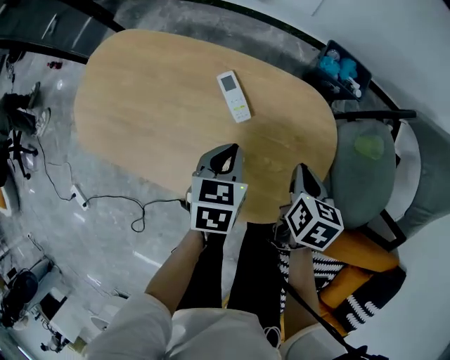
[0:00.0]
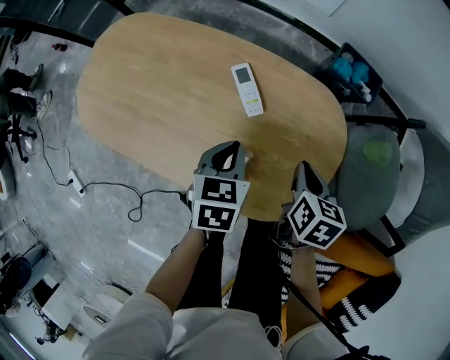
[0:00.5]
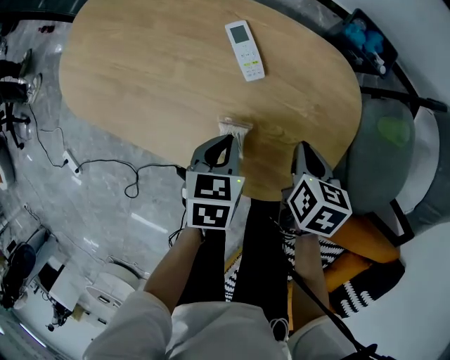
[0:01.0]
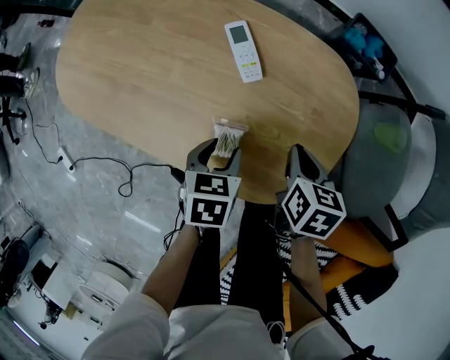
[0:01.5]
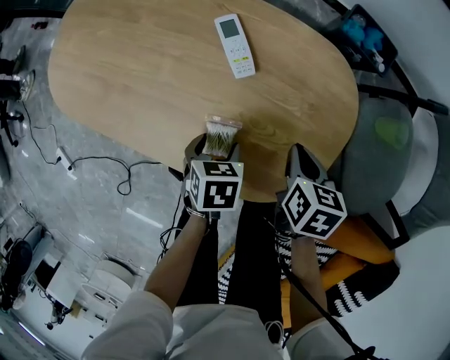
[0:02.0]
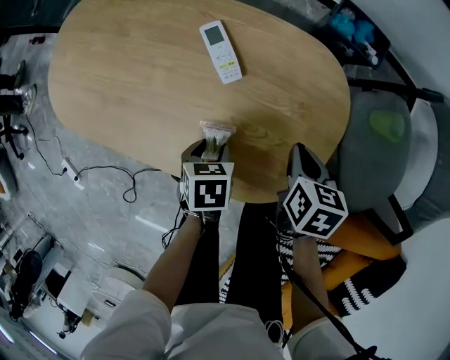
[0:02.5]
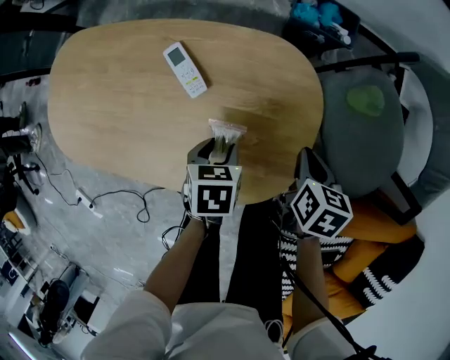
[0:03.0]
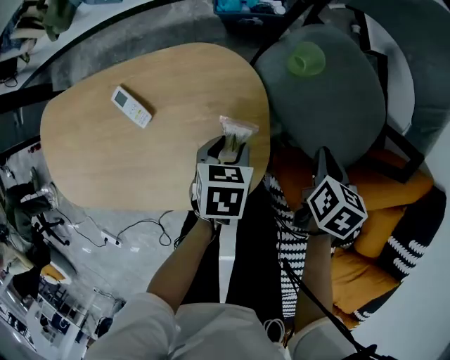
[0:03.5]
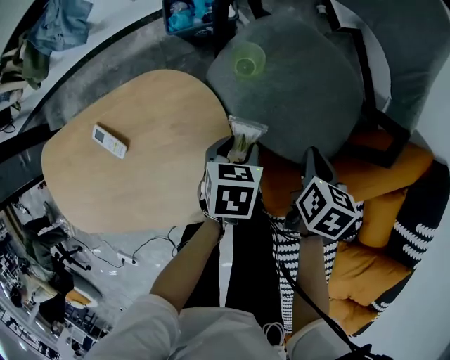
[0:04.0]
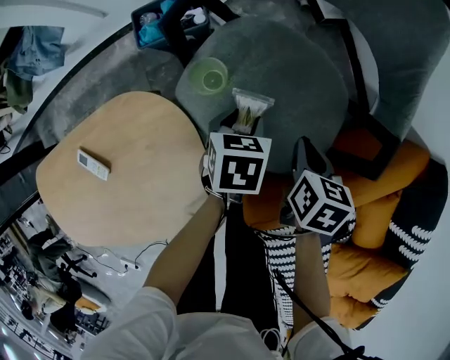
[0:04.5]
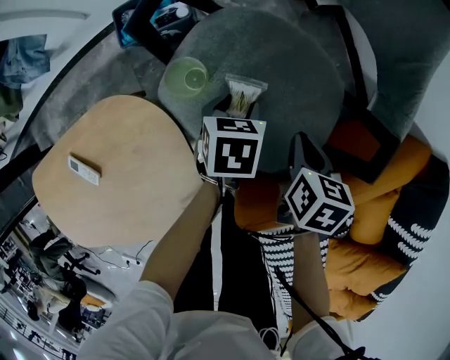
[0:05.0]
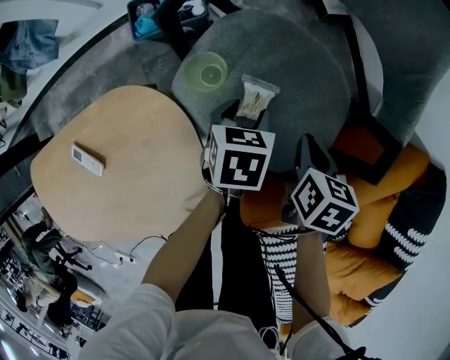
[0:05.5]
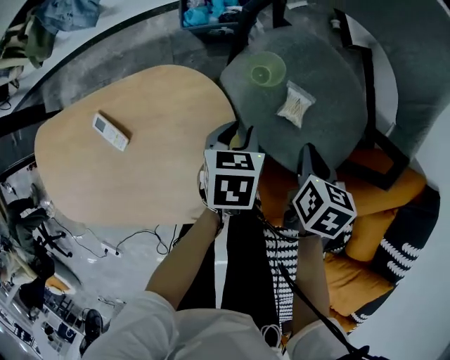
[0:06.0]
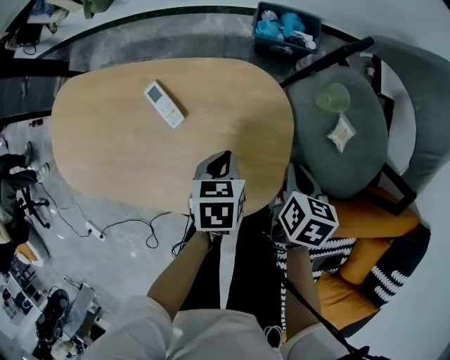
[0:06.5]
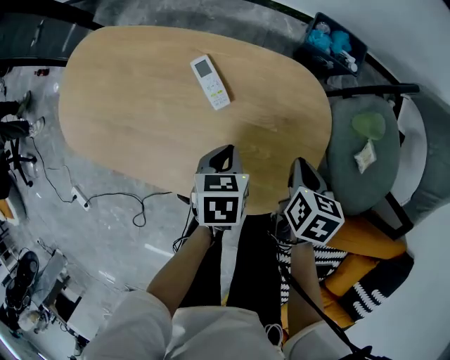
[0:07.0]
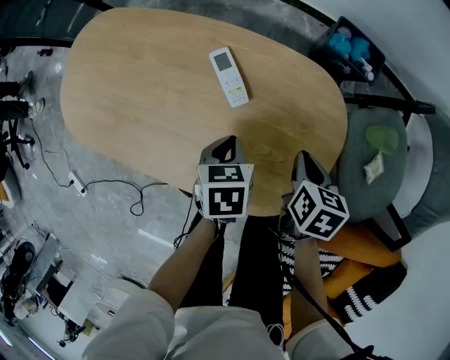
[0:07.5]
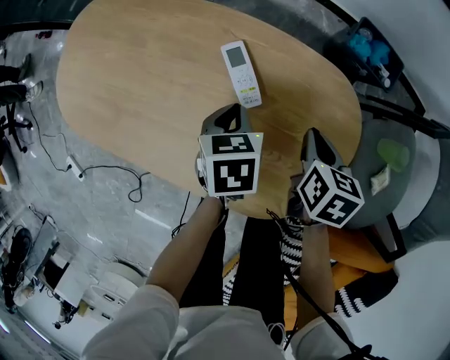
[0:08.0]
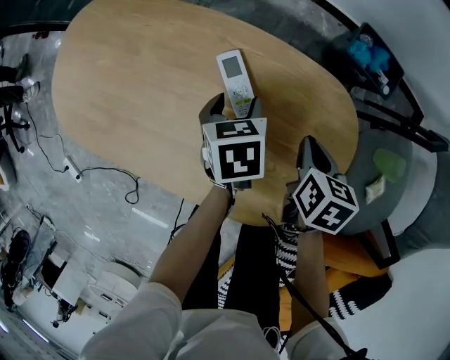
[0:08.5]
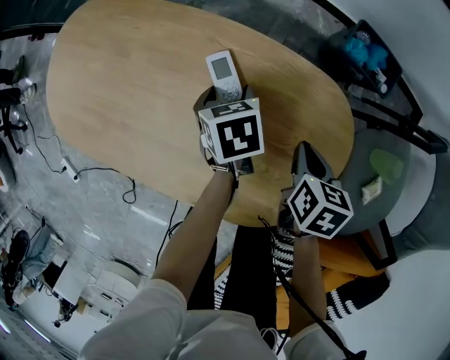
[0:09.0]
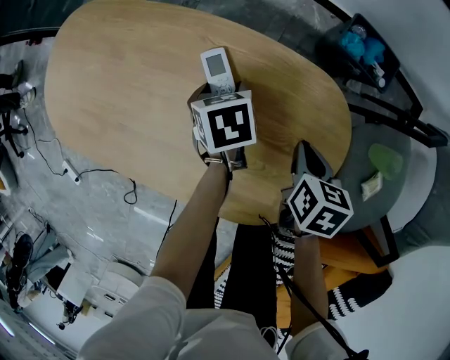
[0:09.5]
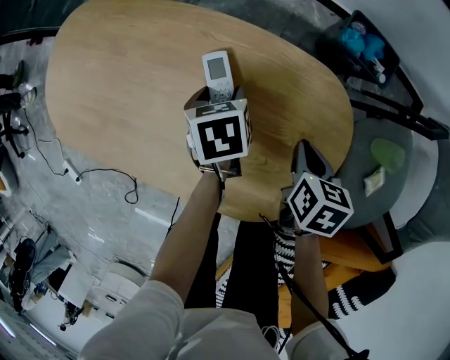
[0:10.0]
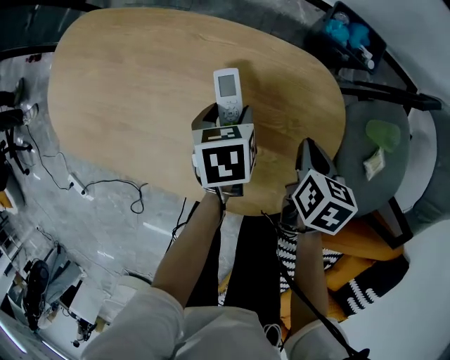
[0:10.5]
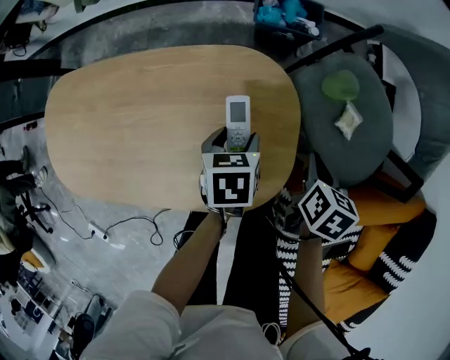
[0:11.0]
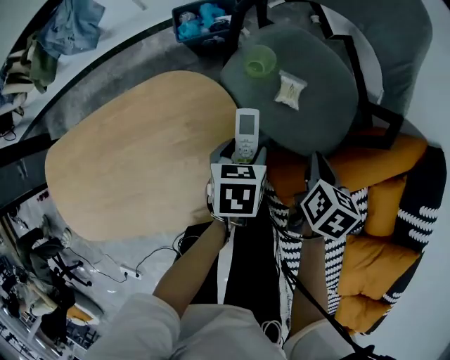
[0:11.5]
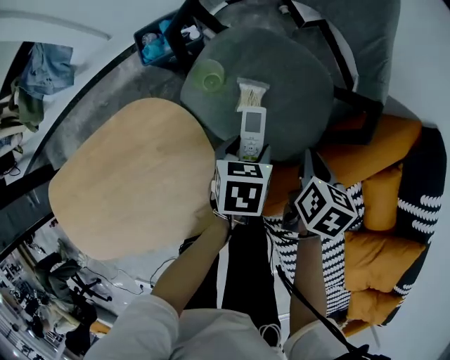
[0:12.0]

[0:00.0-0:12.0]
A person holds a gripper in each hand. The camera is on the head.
0:00.0 to 0:02.0: The left gripper moves downward, about 15 cm, changes its angle by approximately 30 degrees, and opens. The right gripper travels downward by some 10 cm.
0:02.0 to 0:04.0: The left gripper changes place by roughly 40 cm, and changes its angle by about 40 degrees. The right gripper moves about 35 cm, and rotates some 50 degrees.
0:06.0 to 0:08.0: The left gripper changes place by approximately 40 cm, and turns by about 40 degrees. The right gripper changes place by some 40 cm, and changes its angle by roughly 40 degrees.
0:08.0 to 0:10.0: The left gripper ends up roughly 5 cm from where it was, and opens.
0:10.0 to 0:12.0: Both grippers are carried roughly 50 cm. The right gripper changes its angle by some 60 degrees, while the left gripper rotates around the line of its fingers by about 50 degrees, clockwise from behind.

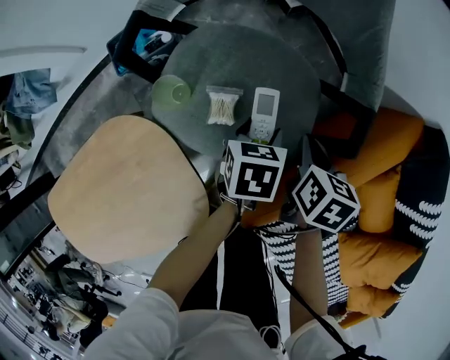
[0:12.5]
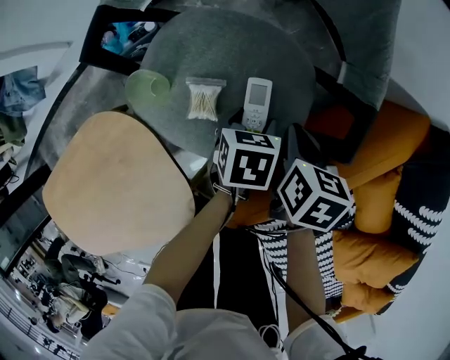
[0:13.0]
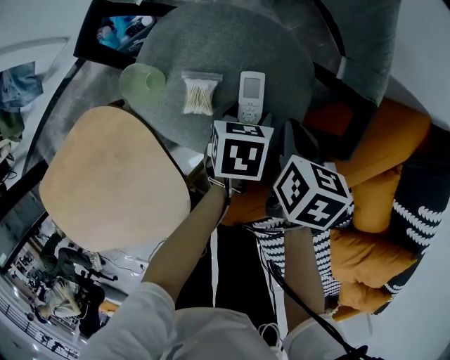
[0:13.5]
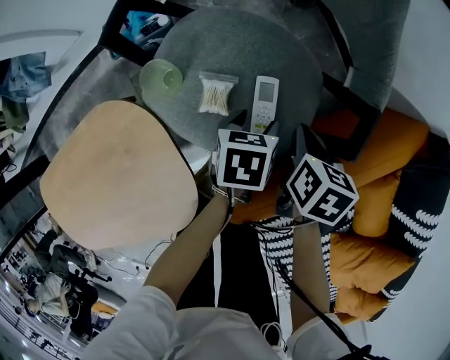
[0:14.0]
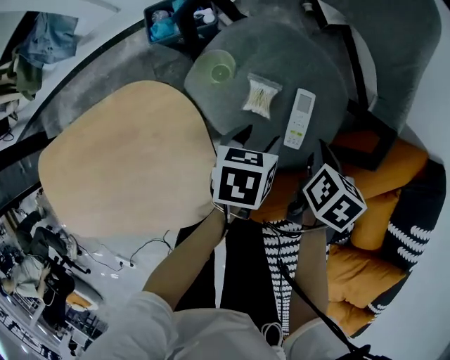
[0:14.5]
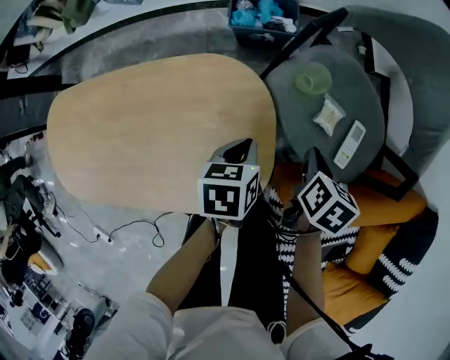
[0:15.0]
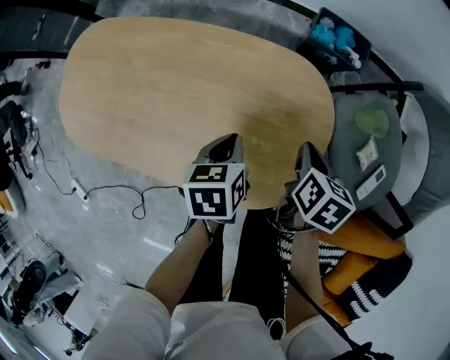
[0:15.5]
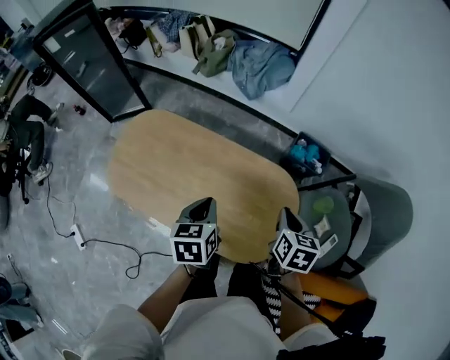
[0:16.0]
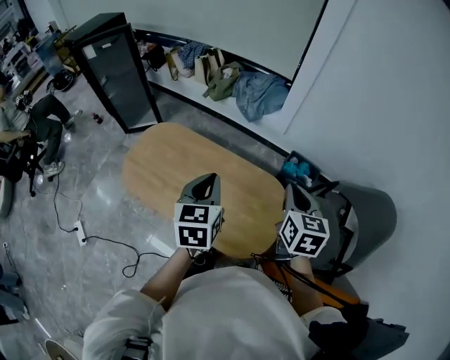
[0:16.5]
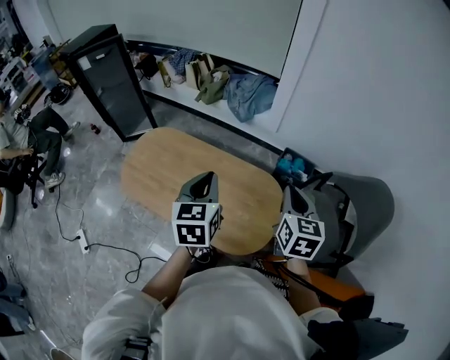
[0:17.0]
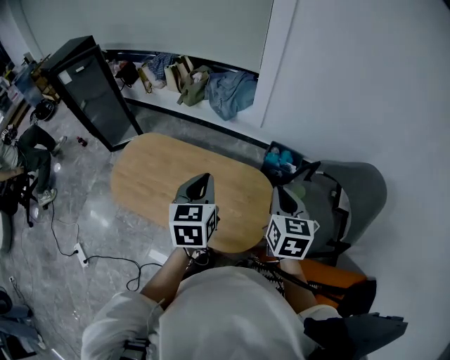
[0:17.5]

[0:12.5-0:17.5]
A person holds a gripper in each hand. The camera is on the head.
0:12.5 to 0:15.0: The left gripper moves roughly 30 cm, swivels roughly 40 degrees, and closes, while the right gripper moves approximately 25 cm, and turns by approximately 20 degrees.
0:15.0 to 0:17.5: Both grippers travel together upward, about 40 cm. The right gripper tilts its fingers approximately 30 degrees upward. Meanwhile the left gripper tilts its fingers about 30 degrees upward.

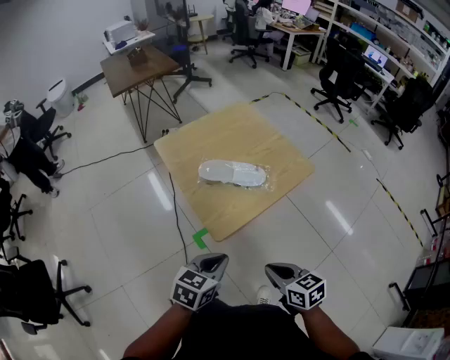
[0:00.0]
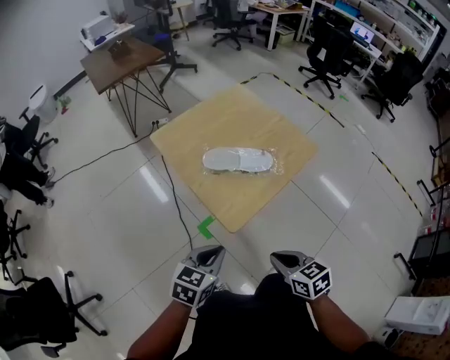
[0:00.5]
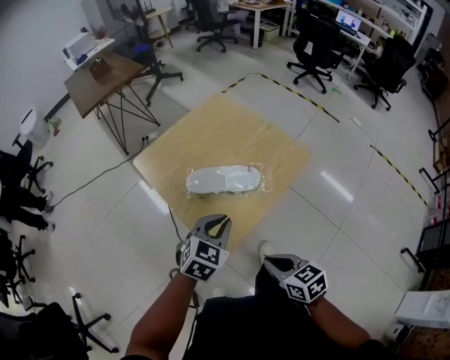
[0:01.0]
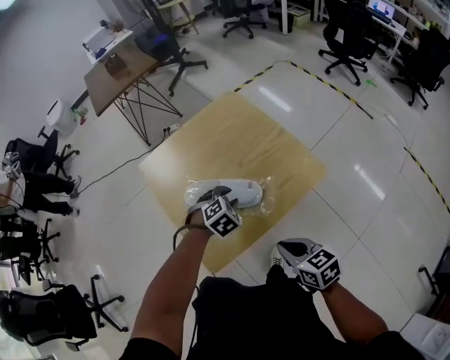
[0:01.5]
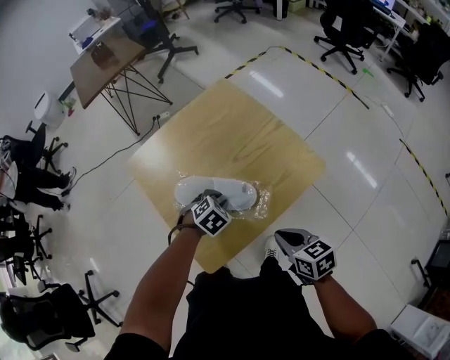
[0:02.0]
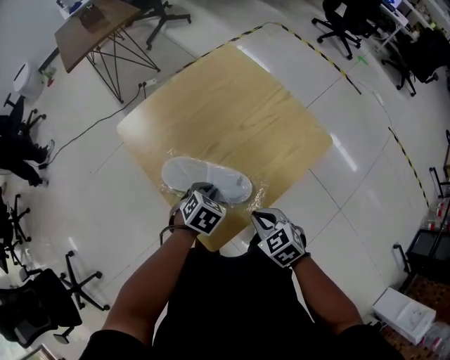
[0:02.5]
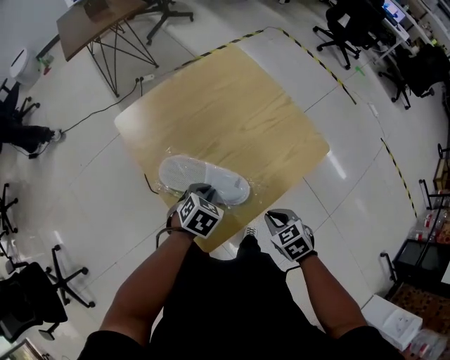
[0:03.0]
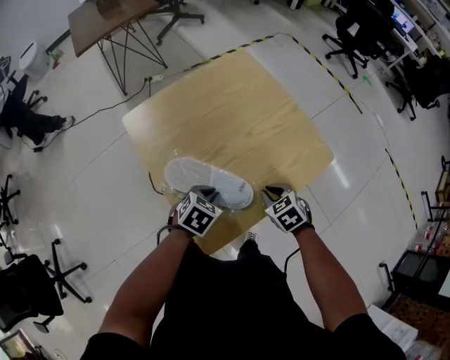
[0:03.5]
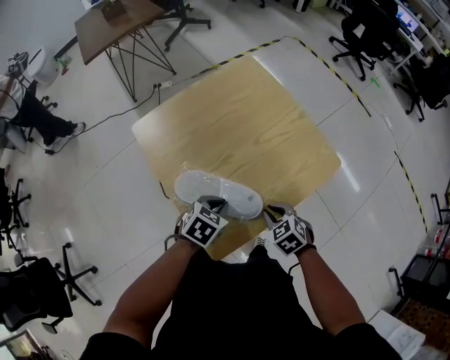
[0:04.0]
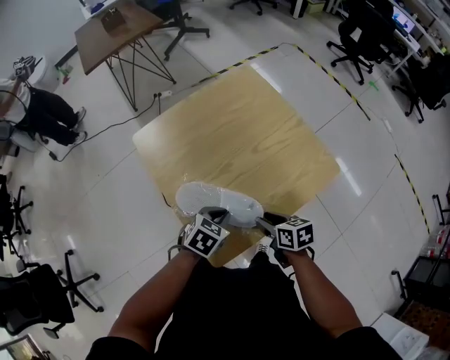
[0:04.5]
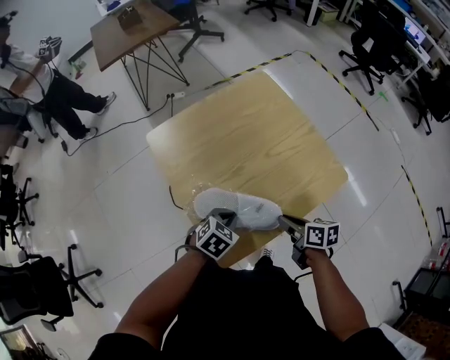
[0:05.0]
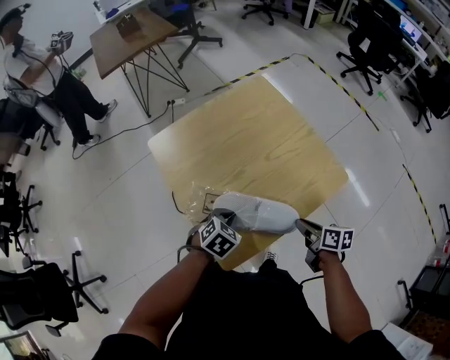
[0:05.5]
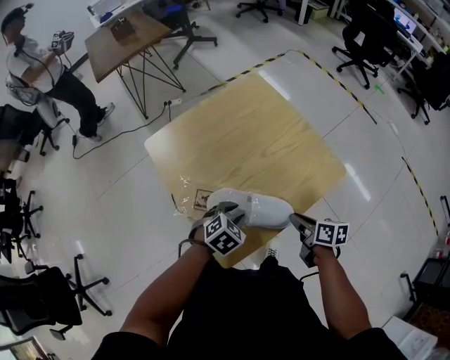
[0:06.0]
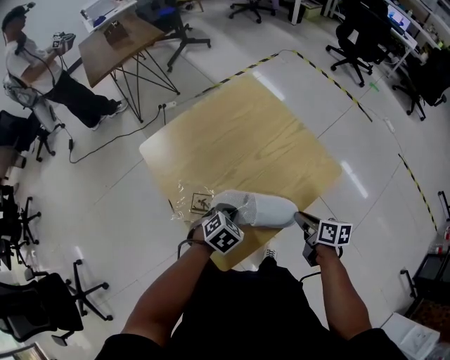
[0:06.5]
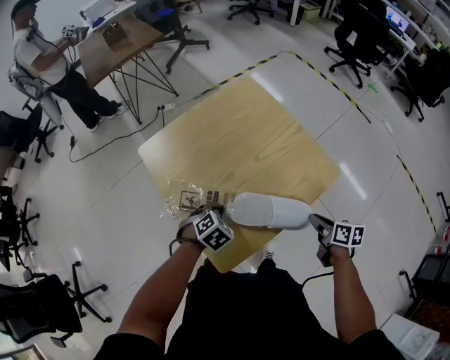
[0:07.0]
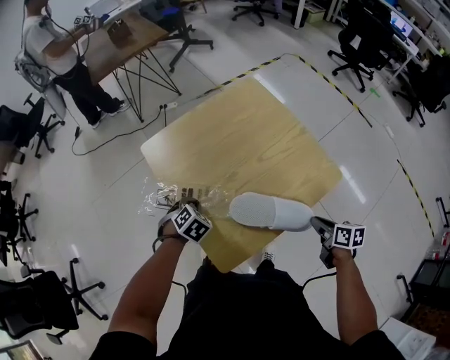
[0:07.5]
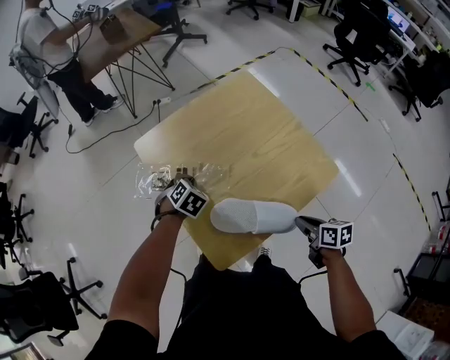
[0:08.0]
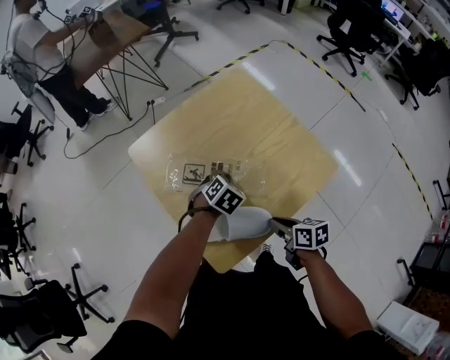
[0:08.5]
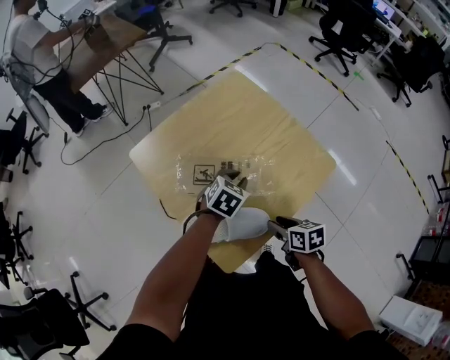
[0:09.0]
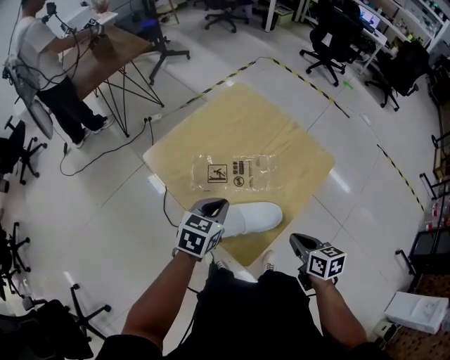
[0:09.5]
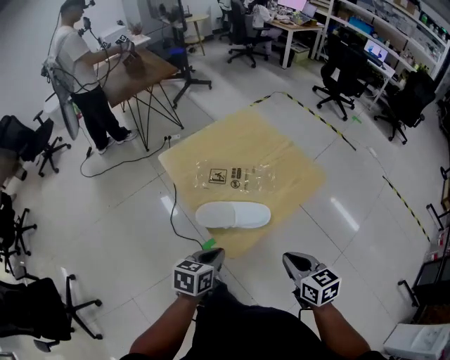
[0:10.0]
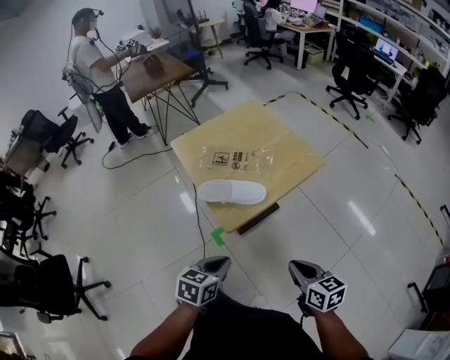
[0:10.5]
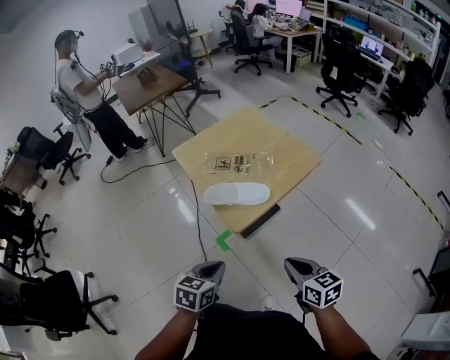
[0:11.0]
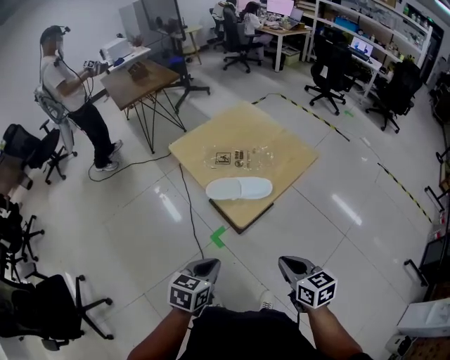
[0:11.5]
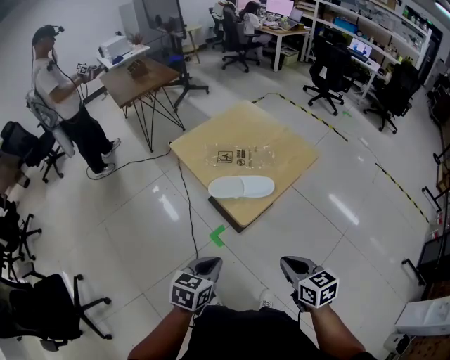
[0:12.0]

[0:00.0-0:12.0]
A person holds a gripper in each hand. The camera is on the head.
0:00.0 to 0:02.0: The right gripper travels forward and to the right by roughly 25 cm; the left gripper shifts about 35 cm forward and downward, points its fingers roughly 40 degrees further downward, and opens.
0:02.0 to 0:04.0: The right gripper shifts approximately 15 cm downward and to the left, and turns by some 40 degrees; the left gripper moves backward and to the left, some 10 cm, and turns by some 30 degrees.
0:04.0 to 0:06.0: The right gripper moves to the right, about 5 cm, rotates around the line of its fingers by some 60 degrees, clockwise from behind, and opens, then closes once more, while the left gripper opens.
0:06.0 to 0:08.0: The left gripper changes place by about 20 cm, changes its angle by some 20 degrees, and closes.
0:08.0 to 0:10.0: The right gripper changes place by about 25 cm, turns by some 30 degrees, and opens, then closes once more. Meanwhile the left gripper changes place by roughly 35 cm, and swivels about 50 degrees.
0:10.0 to 0:12.0: The grippers both shift backward by approximately 20 cm.
